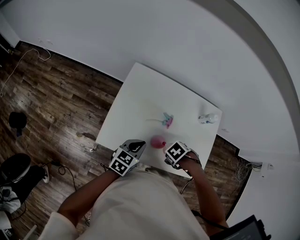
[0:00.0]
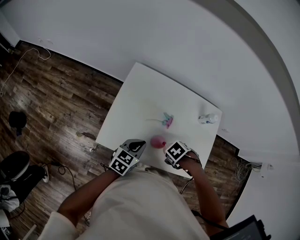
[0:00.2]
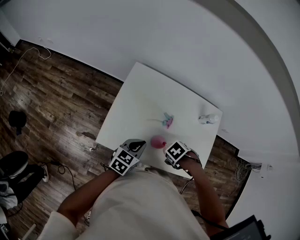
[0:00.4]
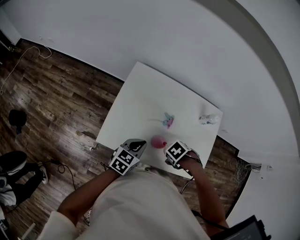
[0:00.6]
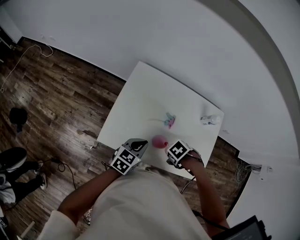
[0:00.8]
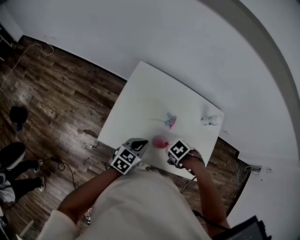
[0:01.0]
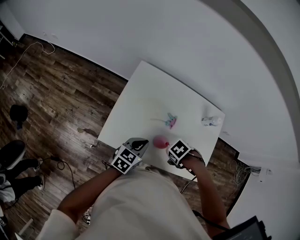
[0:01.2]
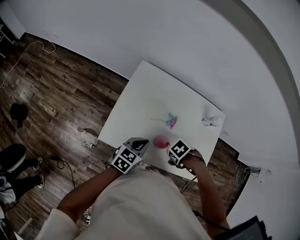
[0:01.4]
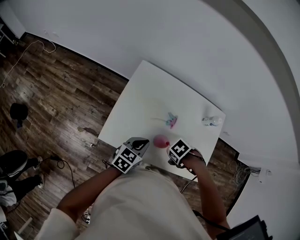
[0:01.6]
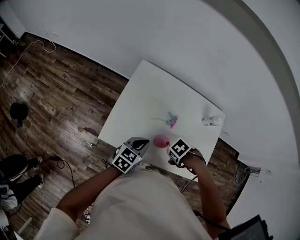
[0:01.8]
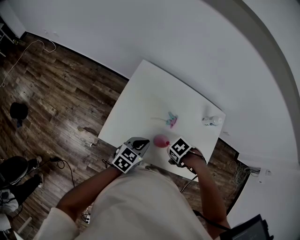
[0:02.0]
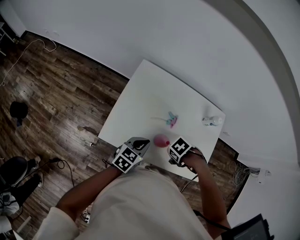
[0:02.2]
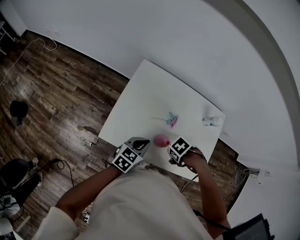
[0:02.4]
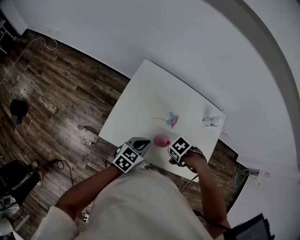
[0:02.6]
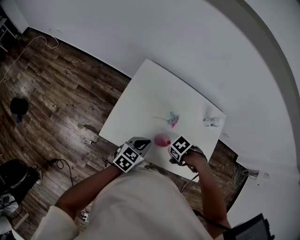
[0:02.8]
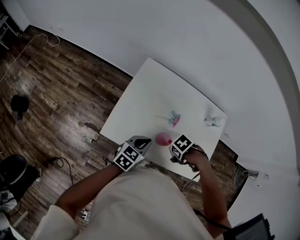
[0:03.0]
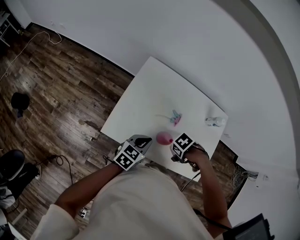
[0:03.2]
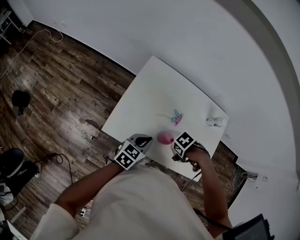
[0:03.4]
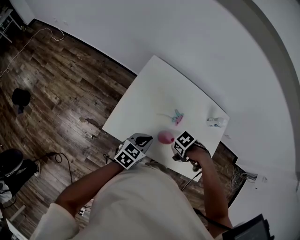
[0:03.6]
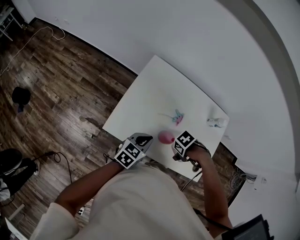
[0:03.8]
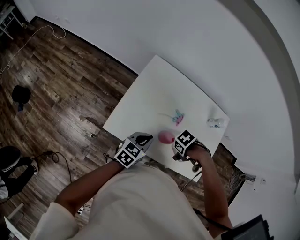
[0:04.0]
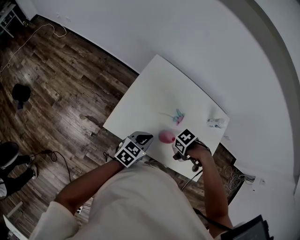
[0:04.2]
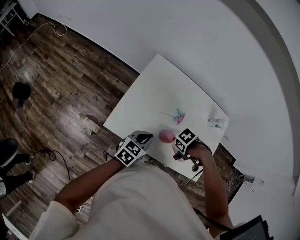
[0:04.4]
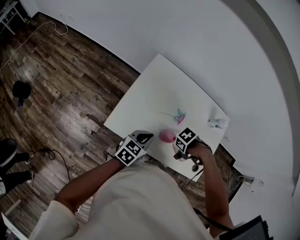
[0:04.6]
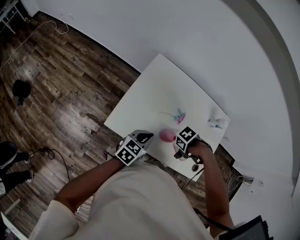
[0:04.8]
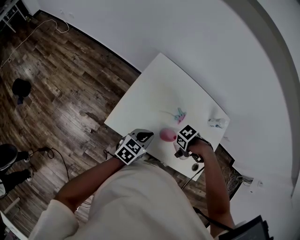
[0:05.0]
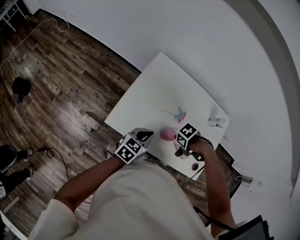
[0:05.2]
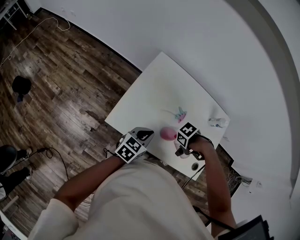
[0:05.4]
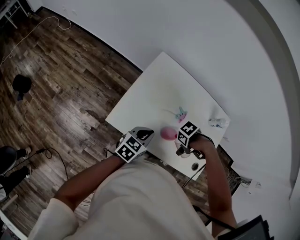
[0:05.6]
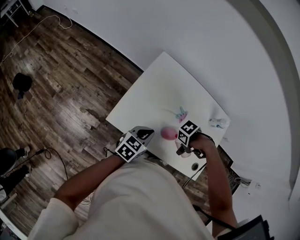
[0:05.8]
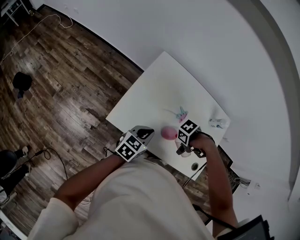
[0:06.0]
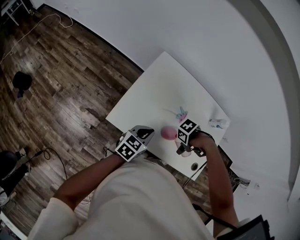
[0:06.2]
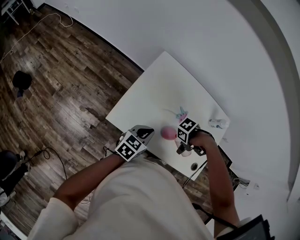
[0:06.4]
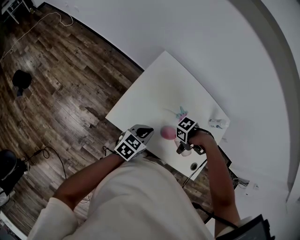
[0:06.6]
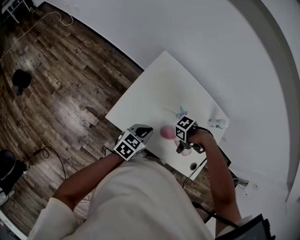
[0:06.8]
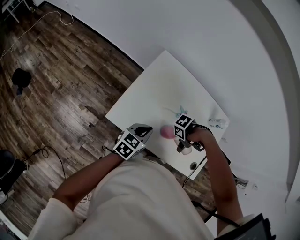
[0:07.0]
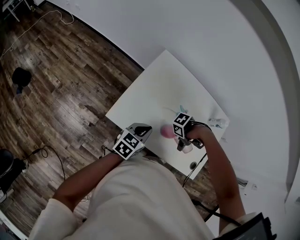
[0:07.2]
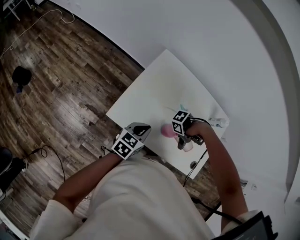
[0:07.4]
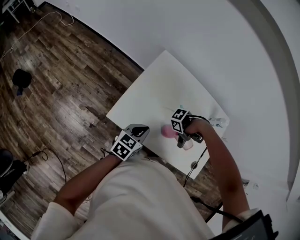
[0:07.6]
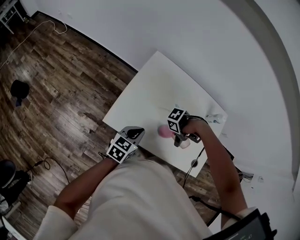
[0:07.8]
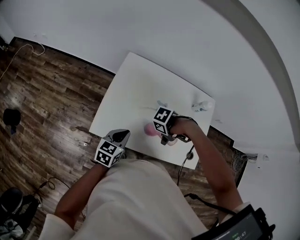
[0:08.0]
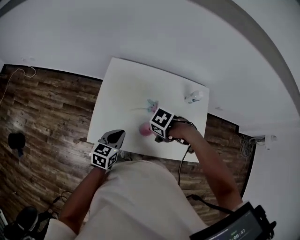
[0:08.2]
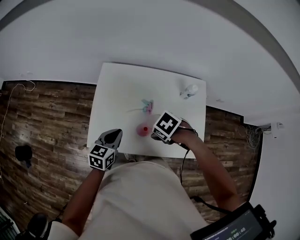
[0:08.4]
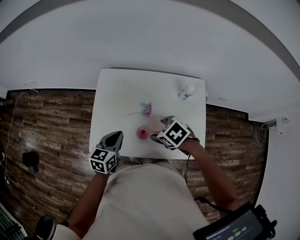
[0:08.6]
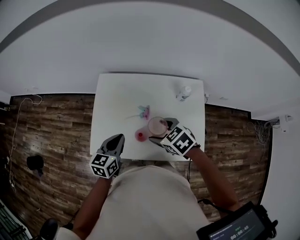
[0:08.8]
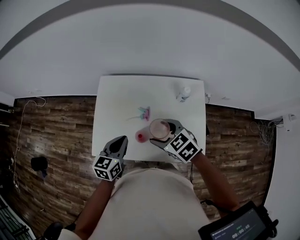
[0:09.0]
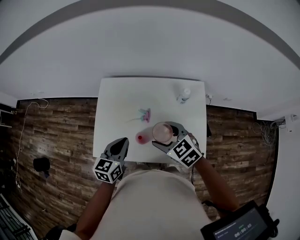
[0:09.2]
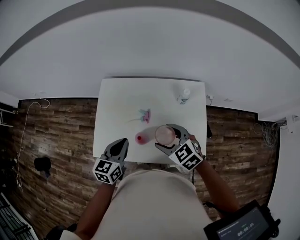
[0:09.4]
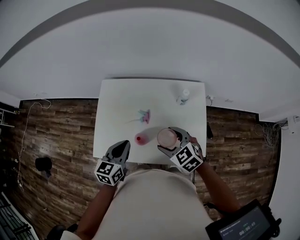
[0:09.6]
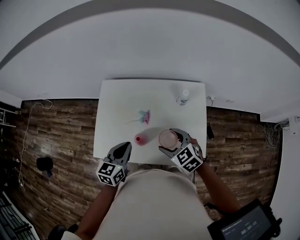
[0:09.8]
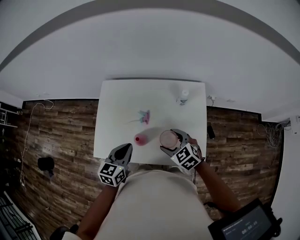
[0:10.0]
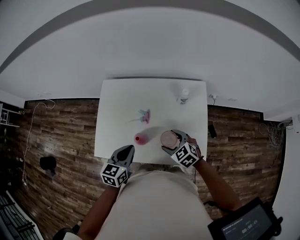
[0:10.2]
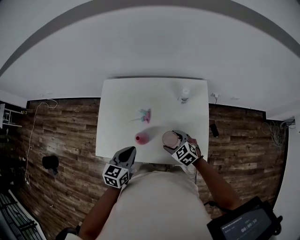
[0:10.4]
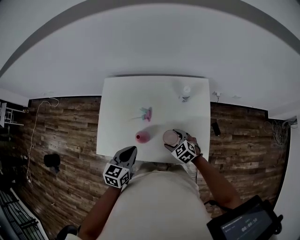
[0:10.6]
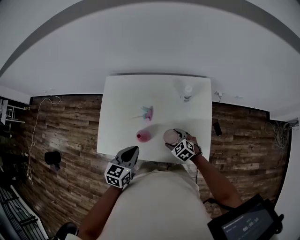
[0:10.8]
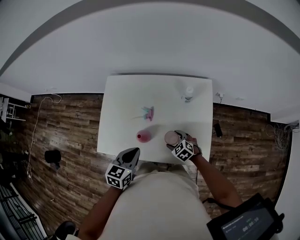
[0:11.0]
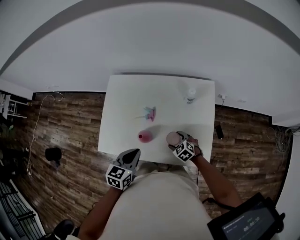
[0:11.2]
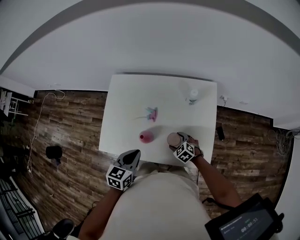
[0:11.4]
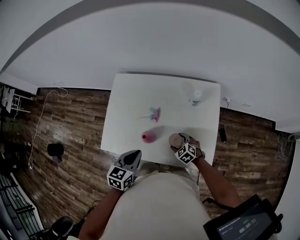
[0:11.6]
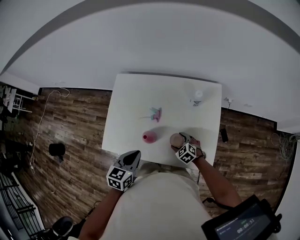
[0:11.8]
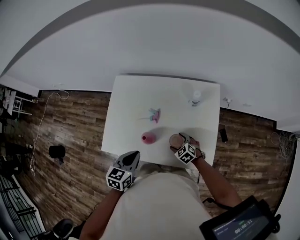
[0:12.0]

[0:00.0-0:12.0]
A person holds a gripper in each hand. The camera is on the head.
0:00.0 to 0:04.4: The grippers make only small movements.
0:04.4 to 0:06.0: The grippers stay close to where they were, moving slightly.
0:06.0 to 0:07.6: The grippers stay close to where they were, moving slightly.
0:07.6 to 0:09.0: The left gripper ends up roughly 20 cm from where it was. Meanwhile the right gripper travels upward by about 15 cm, and rotates about 100 degrees.
0:09.0 to 0:10.4: The left gripper is displaced to the right and backward by about 10 cm; the right gripper travels downward and to the right by about 15 cm.
0:10.4 to 0:12.0: The right gripper heads downward, covering some 10 cm.

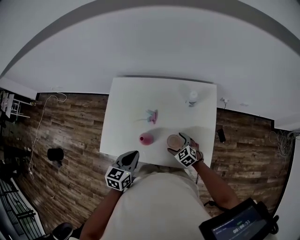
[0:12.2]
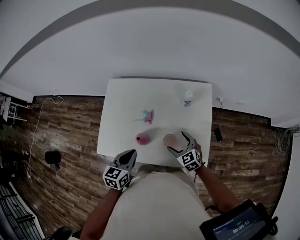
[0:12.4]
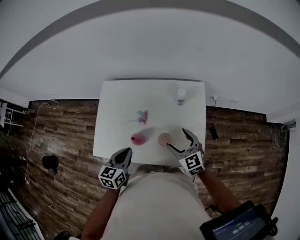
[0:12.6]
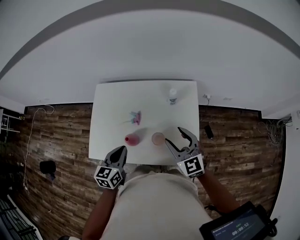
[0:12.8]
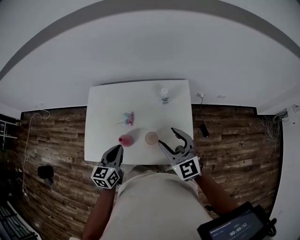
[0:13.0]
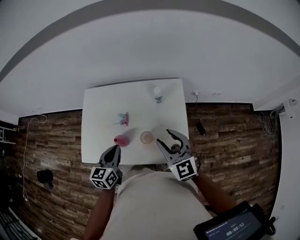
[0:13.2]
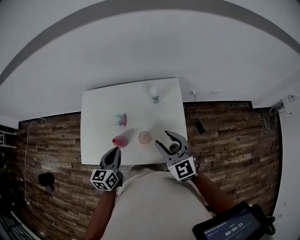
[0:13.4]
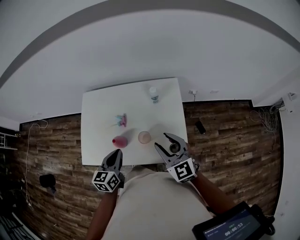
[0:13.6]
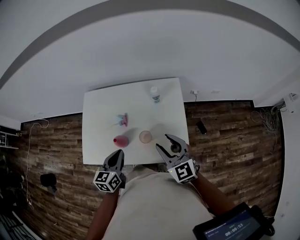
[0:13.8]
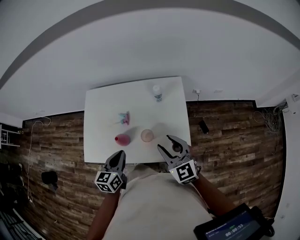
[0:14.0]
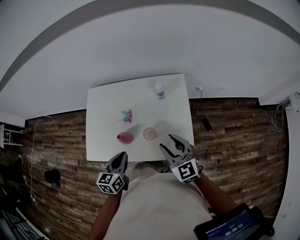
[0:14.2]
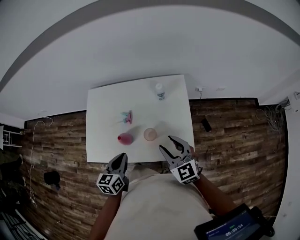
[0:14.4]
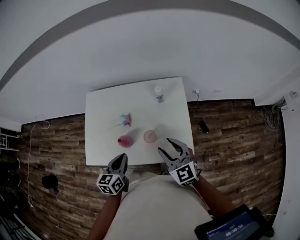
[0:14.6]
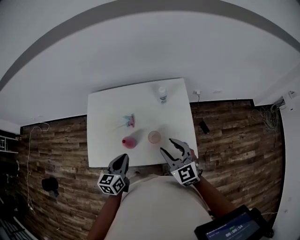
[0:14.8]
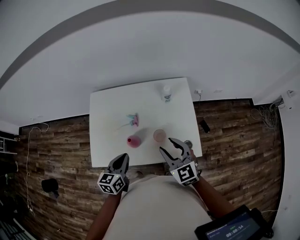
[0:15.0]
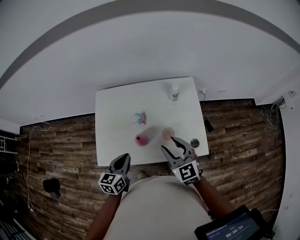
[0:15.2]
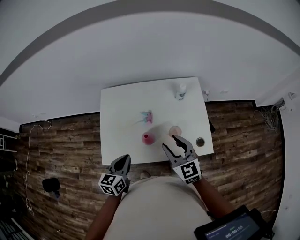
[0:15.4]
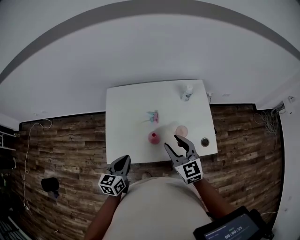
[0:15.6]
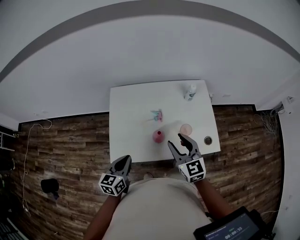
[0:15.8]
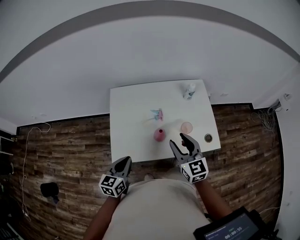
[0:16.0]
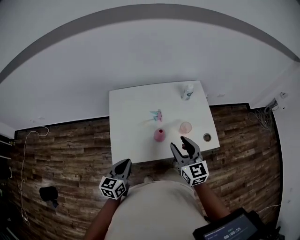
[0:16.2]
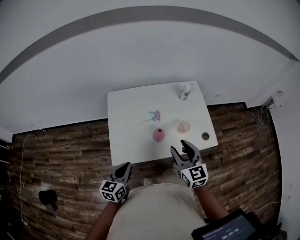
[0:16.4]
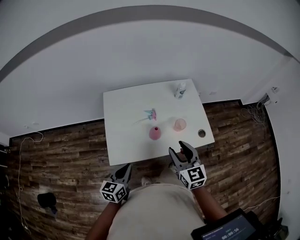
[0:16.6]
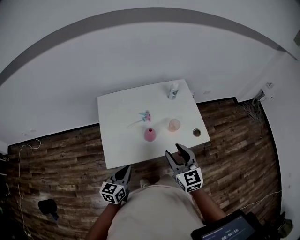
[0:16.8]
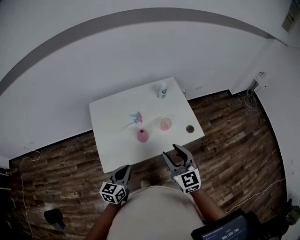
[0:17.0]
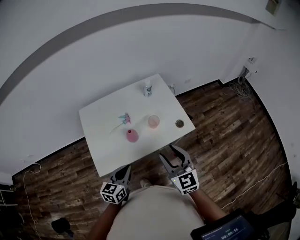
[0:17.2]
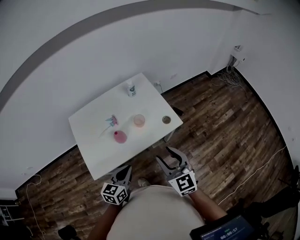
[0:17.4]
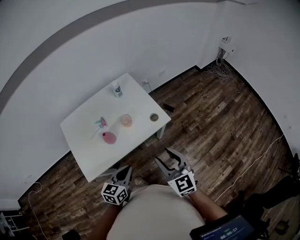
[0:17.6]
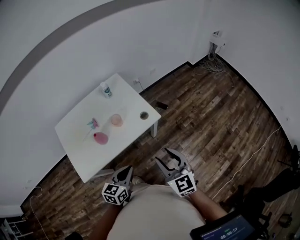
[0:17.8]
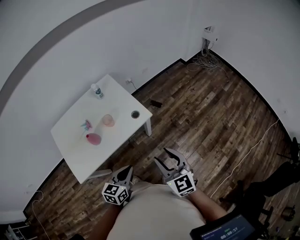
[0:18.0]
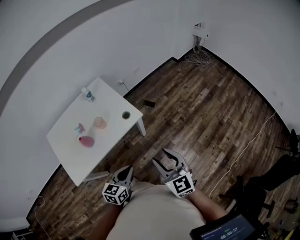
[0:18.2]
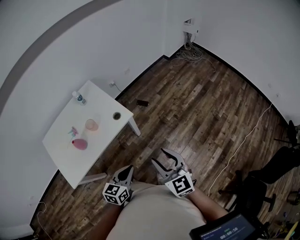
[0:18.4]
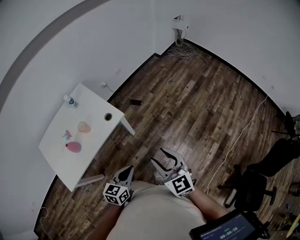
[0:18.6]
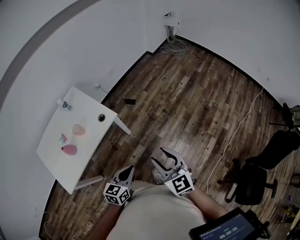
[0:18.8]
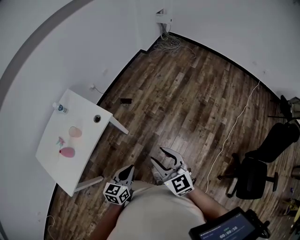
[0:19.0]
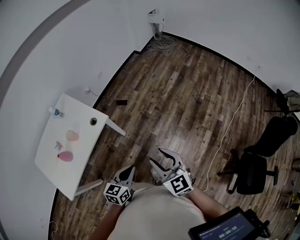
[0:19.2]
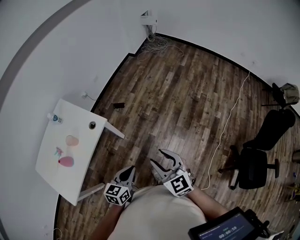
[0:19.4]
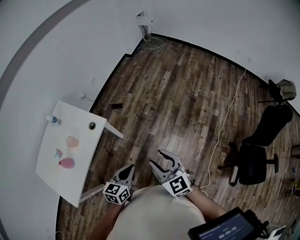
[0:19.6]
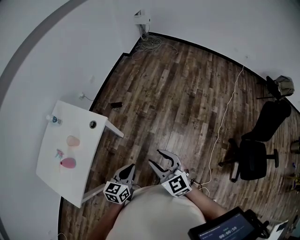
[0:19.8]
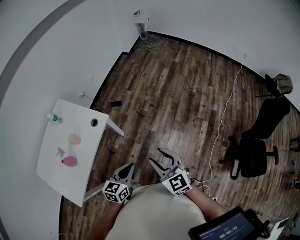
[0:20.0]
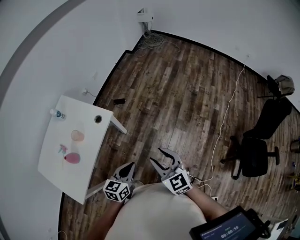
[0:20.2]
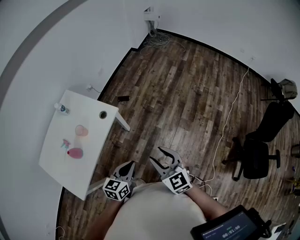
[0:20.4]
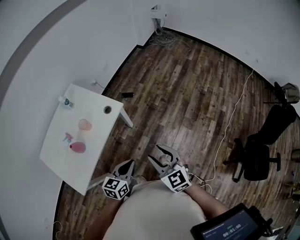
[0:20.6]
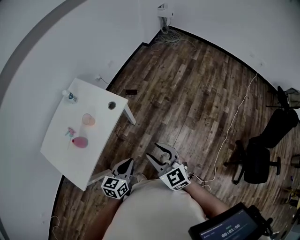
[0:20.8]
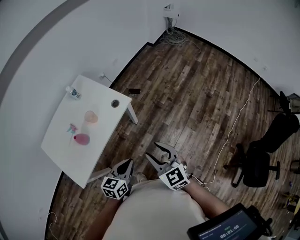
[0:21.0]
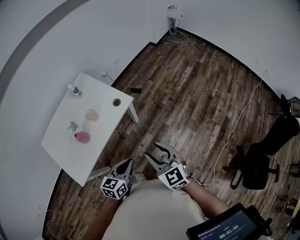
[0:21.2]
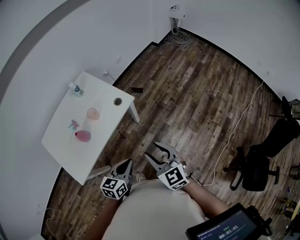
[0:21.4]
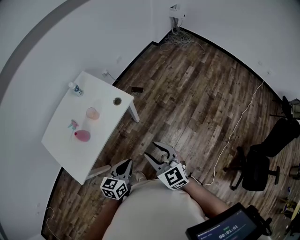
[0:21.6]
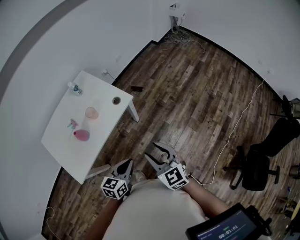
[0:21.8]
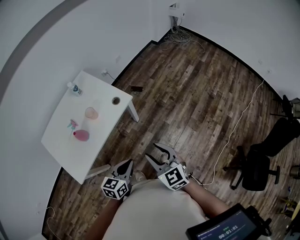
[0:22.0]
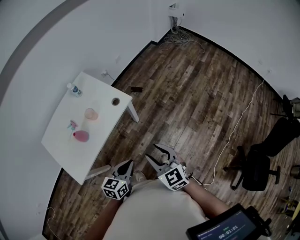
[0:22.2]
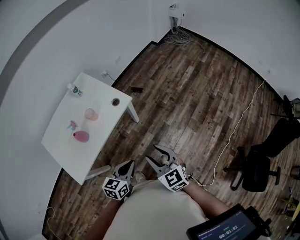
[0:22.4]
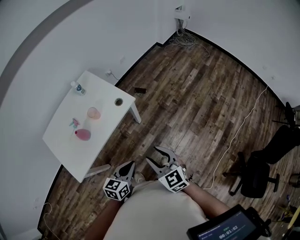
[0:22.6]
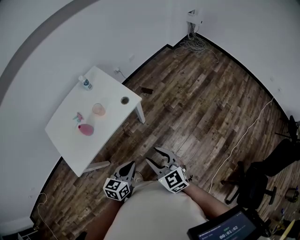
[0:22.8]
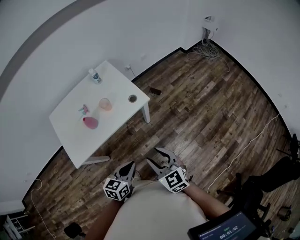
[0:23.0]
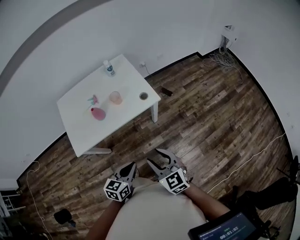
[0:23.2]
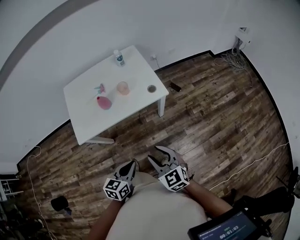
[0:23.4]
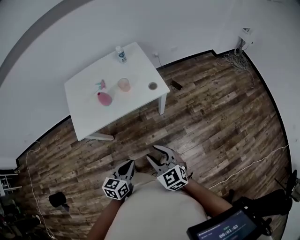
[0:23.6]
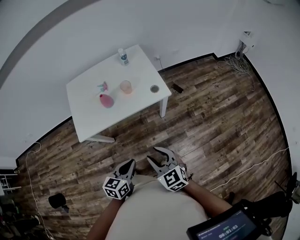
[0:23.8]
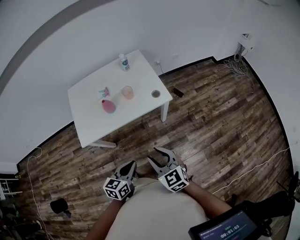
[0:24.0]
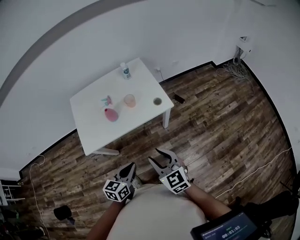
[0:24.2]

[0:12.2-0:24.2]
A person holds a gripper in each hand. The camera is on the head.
0:12.2 to 0:13.8: The right gripper is displaced upward by approximately 25 cm, turns by roughly 40 degrees, and closes, while the left gripper shifts approximately 5 cm to the right.
0:13.8 to 0:15.2: The two grippers go roughly 15 cm to the left.
0:15.2 to 0:16.6: The left gripper goes approximately 20 cm to the left and backward. The right gripper moves backward and to the left, about 15 cm.
0:16.6 to 0:18.2: The two grippers travel together, about 40 cm. The right gripper rotates some 20 degrees, while the left gripper swivels roughly 40 degrees.
0:18.2 to 0:19.8: The left gripper is displaced to the right by approximately 10 cm, and changes its angle by some 20 degrees, while the right gripper goes some 10 cm to the right and backward, and changes its angle by about 20 degrees.
0:19.8 to 0:21.2: Both grippers travel together to the left, roughly 10 cm.
0:21.2 to 0:22.6: There are only small adjustments of the grippers.
0:22.6 to 0:24.2: The right gripper moves approximately 10 cm, and changes its angle by approximately 30 degrees. Meanwhile the left gripper changes place by approximately 5 cm, and changes its angle by about 30 degrees.
